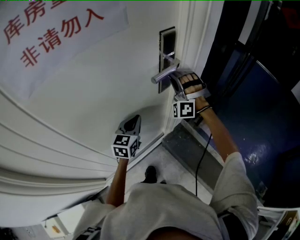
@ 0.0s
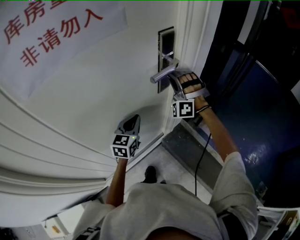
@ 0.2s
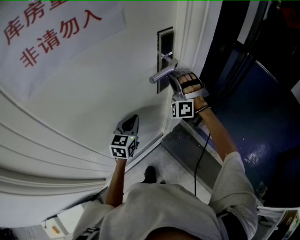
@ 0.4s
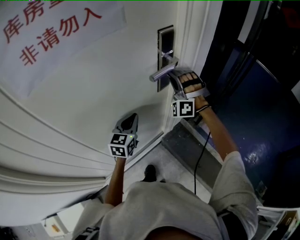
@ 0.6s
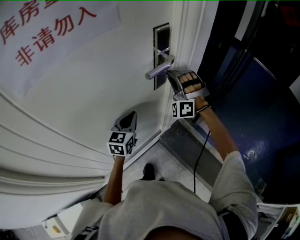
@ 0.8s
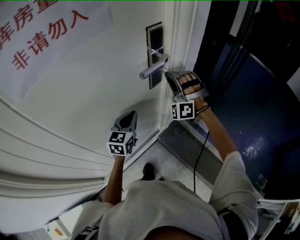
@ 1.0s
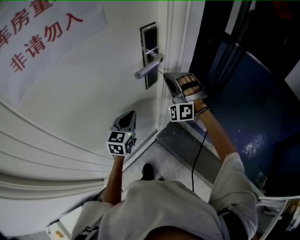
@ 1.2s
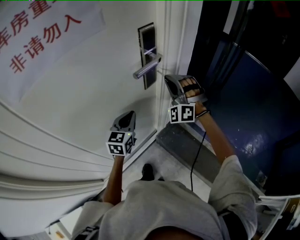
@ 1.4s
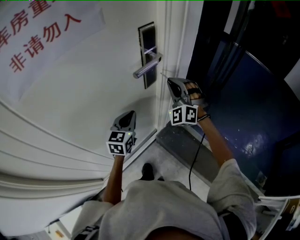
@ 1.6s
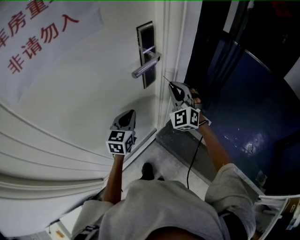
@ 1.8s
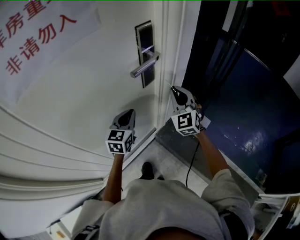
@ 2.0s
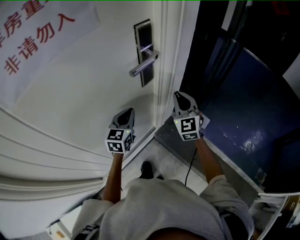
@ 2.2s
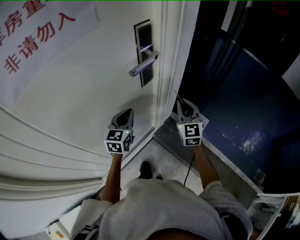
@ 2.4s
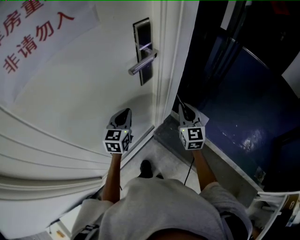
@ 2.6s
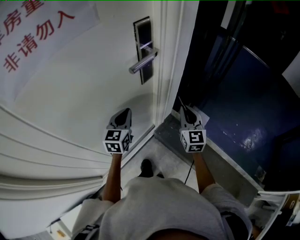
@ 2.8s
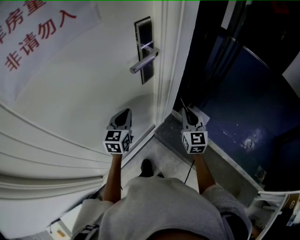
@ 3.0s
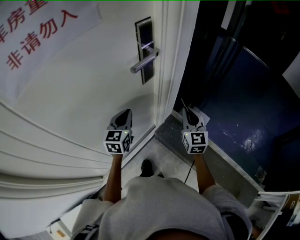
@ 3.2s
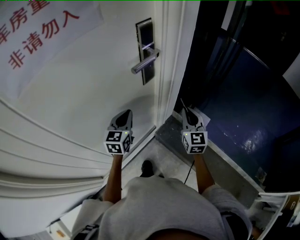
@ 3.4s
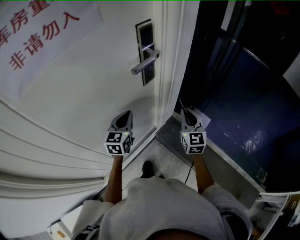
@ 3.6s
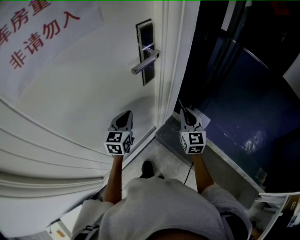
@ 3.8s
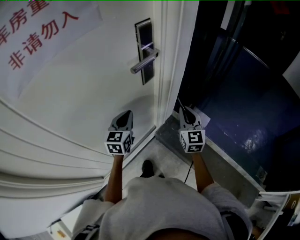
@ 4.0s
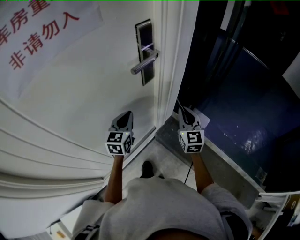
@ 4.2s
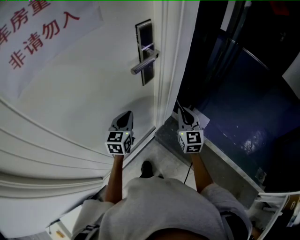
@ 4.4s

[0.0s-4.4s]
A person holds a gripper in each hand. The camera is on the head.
0.0s to 1.4s: The right gripper is displaced to the right by about 5 cm.
1.4s to 3.0s: The right gripper travels to the right, backward and downward by roughly 20 cm, and twists approximately 70 degrees clockwise, seen from behind.
3.0s to 4.4s: The grippers stay close to where they were, moving slightly.

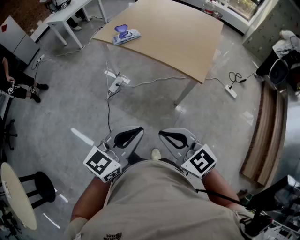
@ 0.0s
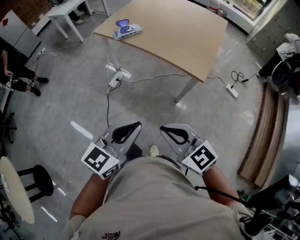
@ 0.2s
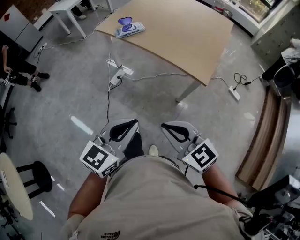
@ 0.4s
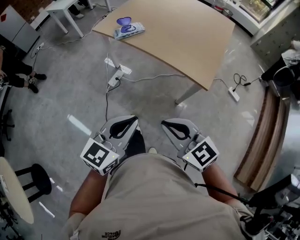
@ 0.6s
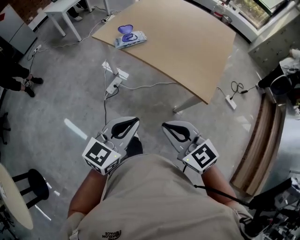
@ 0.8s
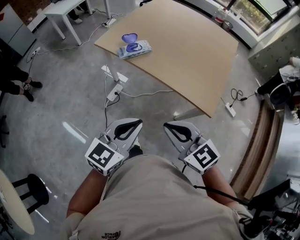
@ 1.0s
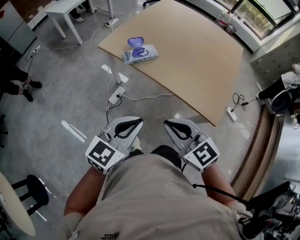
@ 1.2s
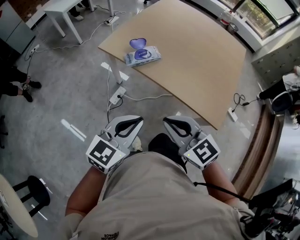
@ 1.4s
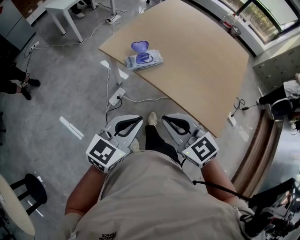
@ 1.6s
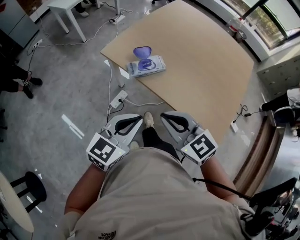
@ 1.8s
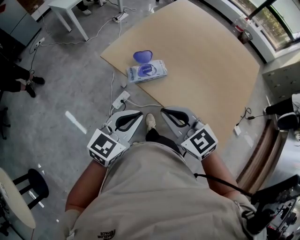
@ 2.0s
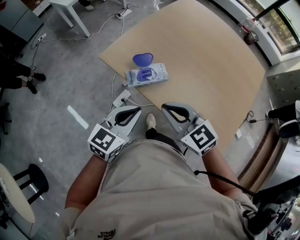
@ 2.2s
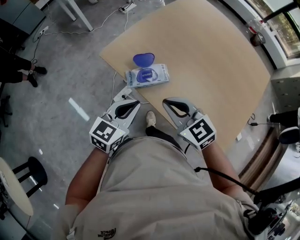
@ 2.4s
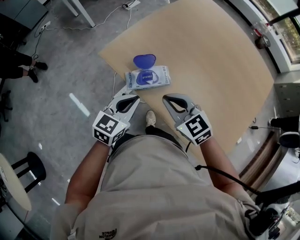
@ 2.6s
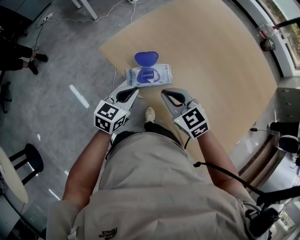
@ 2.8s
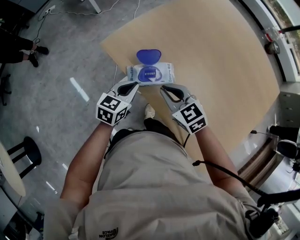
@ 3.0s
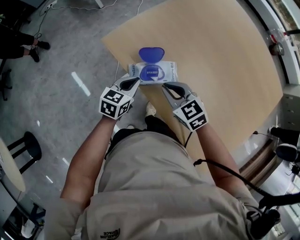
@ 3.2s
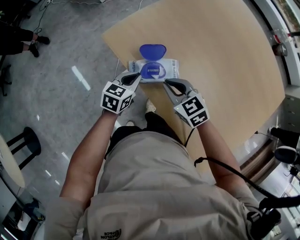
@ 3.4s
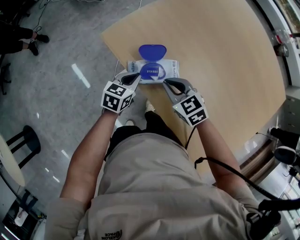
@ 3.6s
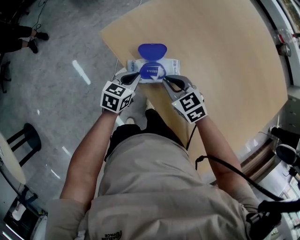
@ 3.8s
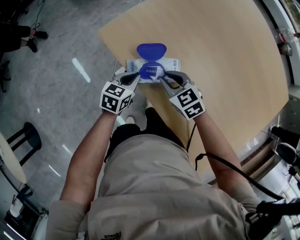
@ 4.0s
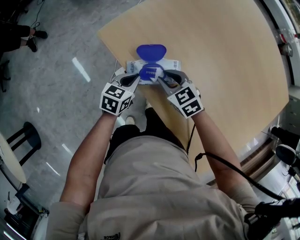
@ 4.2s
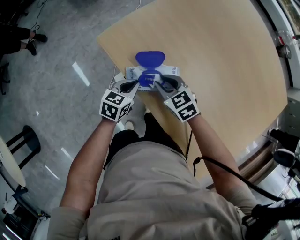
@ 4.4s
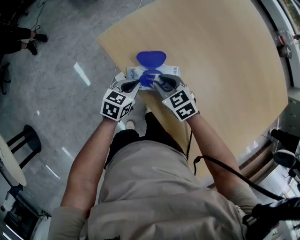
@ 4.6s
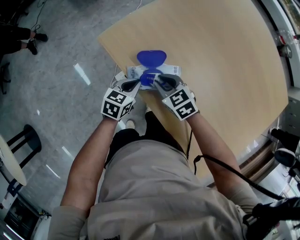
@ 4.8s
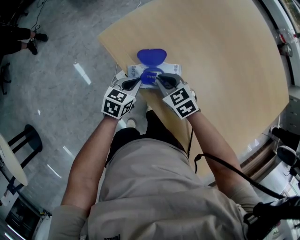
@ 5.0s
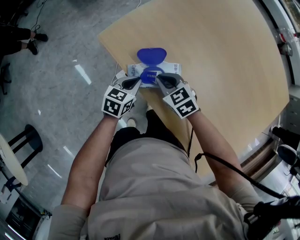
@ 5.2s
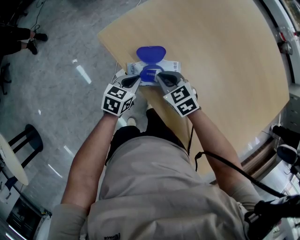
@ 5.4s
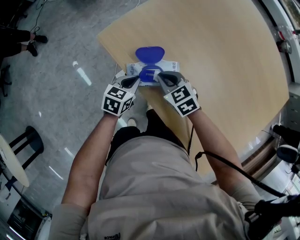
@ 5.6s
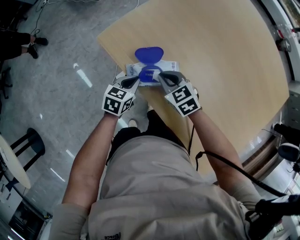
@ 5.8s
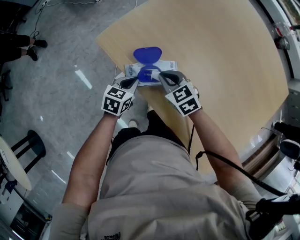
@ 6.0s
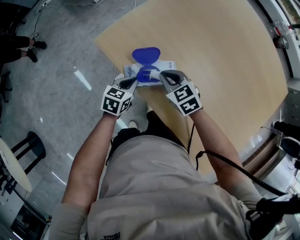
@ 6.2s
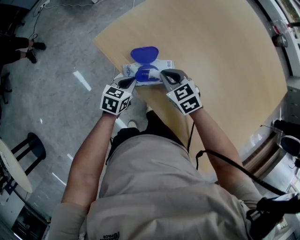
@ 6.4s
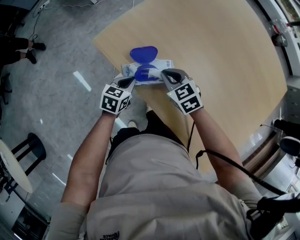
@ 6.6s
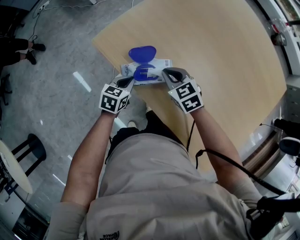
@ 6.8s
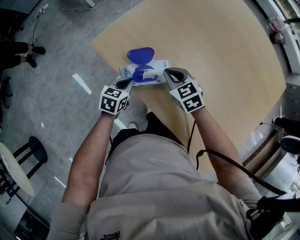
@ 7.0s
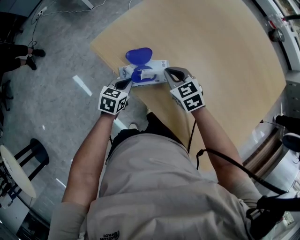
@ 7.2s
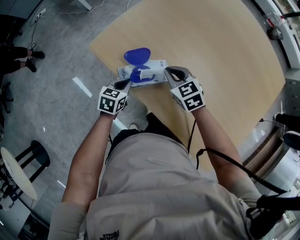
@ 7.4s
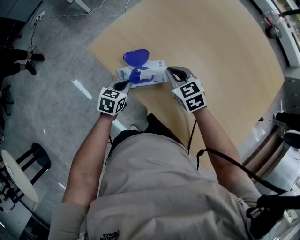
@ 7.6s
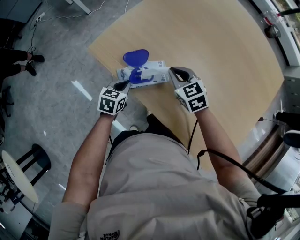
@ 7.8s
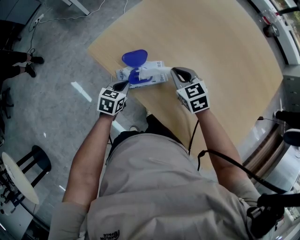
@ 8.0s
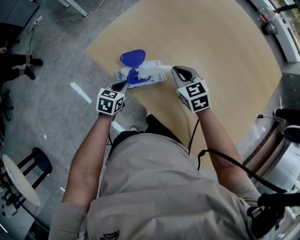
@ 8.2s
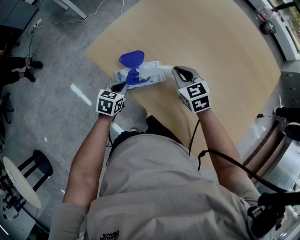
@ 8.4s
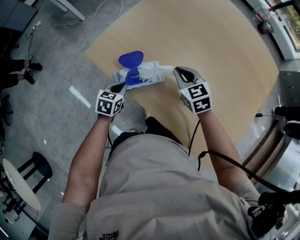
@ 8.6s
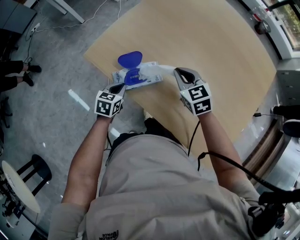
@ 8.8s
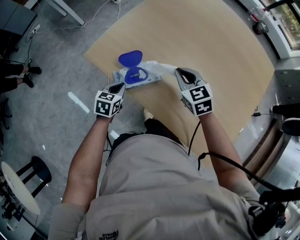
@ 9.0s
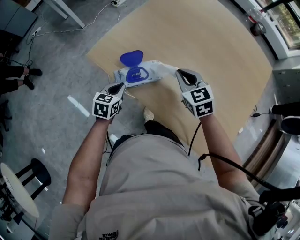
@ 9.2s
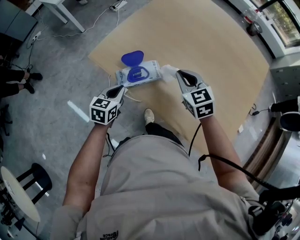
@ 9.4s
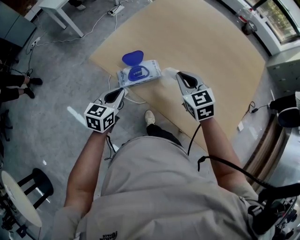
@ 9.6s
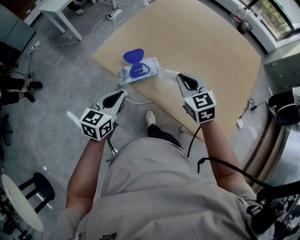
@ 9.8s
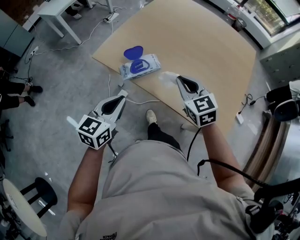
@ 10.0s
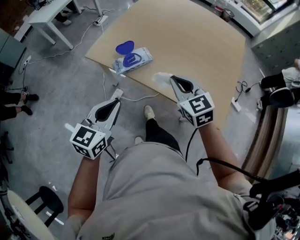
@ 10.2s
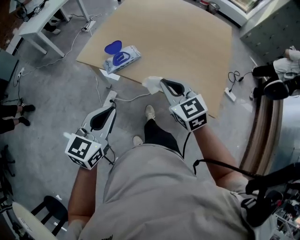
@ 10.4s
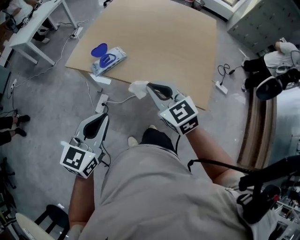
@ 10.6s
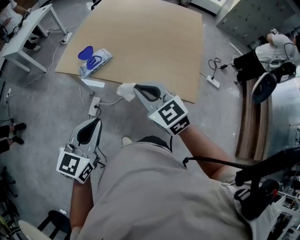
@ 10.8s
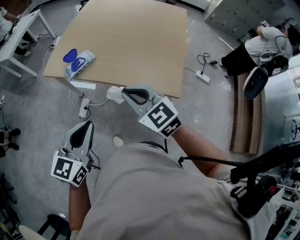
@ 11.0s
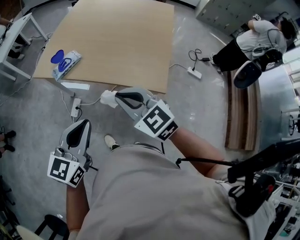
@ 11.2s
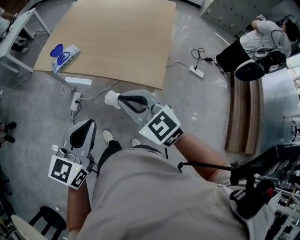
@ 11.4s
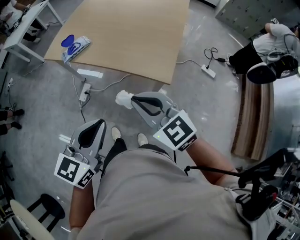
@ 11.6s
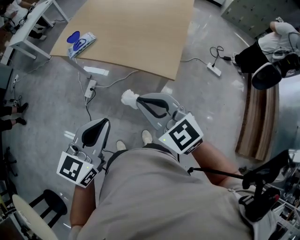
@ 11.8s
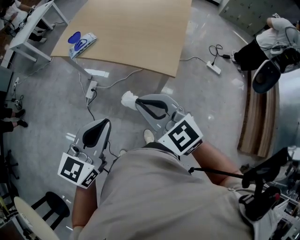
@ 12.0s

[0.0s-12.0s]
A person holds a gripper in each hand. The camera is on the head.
0.0s to 1.6s: Both grippers are carried forward, about 50 cm.
1.6s to 3.0s: Both grippers move forward and downward, approximately 40 cm. The left gripper swivels approximately 30 degrees.
3.0s to 4.4s: The right gripper is displaced downward and forward by approximately 15 cm; the left gripper is displaced downward by roughly 10 cm.
4.4s to 6.0s: The right gripper closes up.
6.0s to 7.6s: The right gripper moves to the right, about 10 cm.
7.6s to 9.0s: The right gripper goes about 10 cm upward and to the right.
9.0s to 10.4s: The right gripper is displaced backward and upward by roughly 35 cm; the left gripper is displaced upward and backward by roughly 40 cm, and tilts its fingers some 30 degrees upward.
10.4s to 12.0s: Both grippers travel together backward and to the right, about 40 cm.

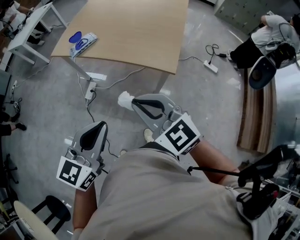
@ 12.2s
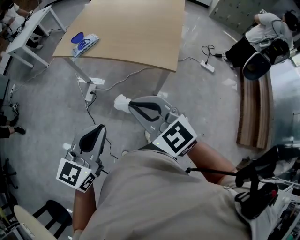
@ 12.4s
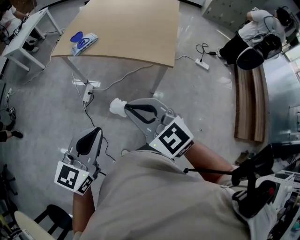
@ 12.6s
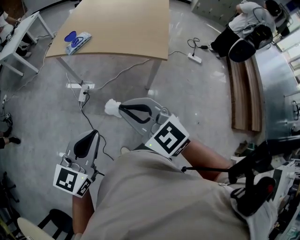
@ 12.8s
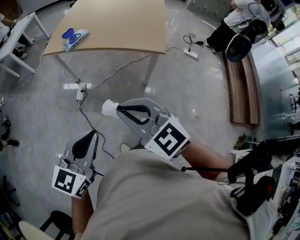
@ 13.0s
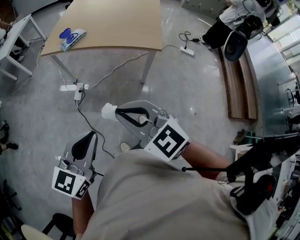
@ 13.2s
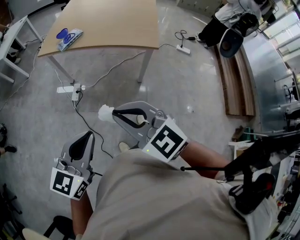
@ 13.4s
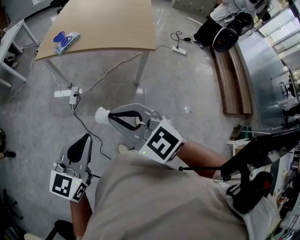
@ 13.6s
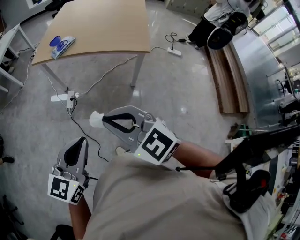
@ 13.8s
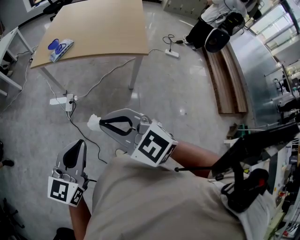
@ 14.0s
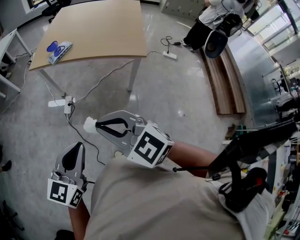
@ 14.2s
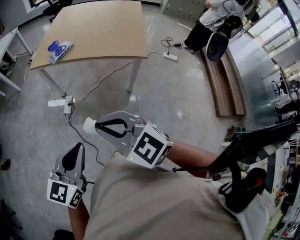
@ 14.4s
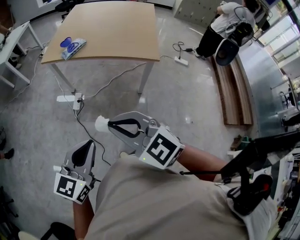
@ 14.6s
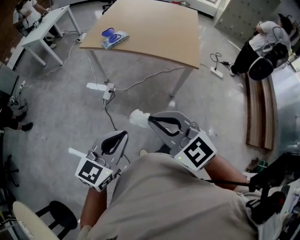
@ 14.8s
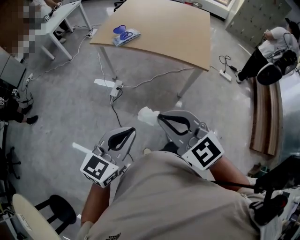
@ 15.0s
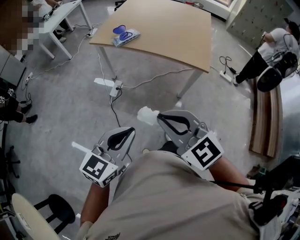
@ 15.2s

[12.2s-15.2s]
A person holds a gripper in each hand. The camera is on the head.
12.2s to 13.8s: Both grippers move to the left and backward, some 30 cm.
13.8s to 15.2s: The grippers stay close to where they were, moving slightly.

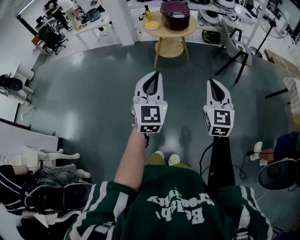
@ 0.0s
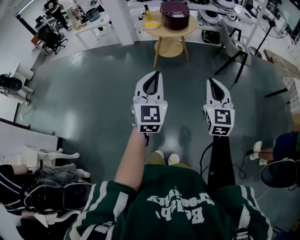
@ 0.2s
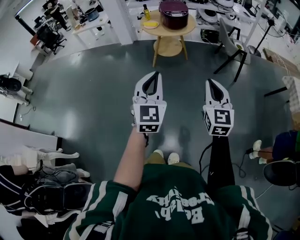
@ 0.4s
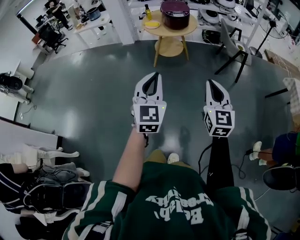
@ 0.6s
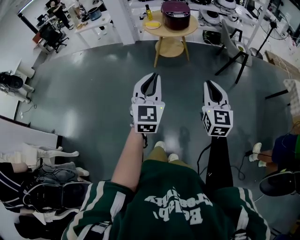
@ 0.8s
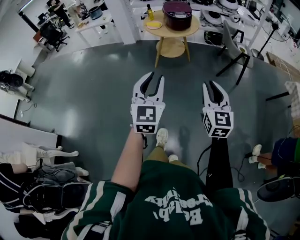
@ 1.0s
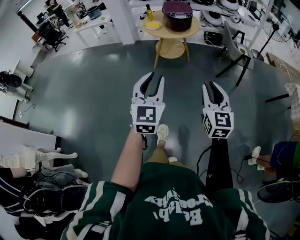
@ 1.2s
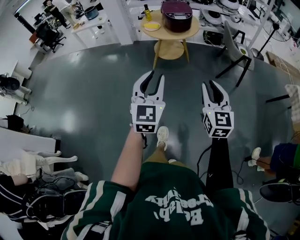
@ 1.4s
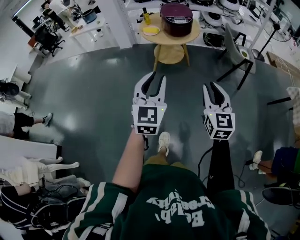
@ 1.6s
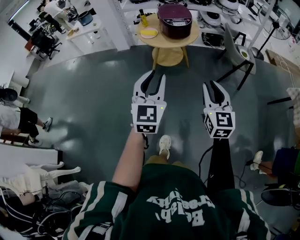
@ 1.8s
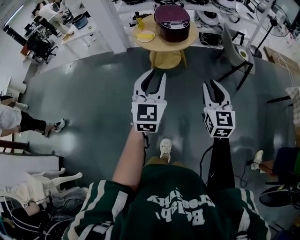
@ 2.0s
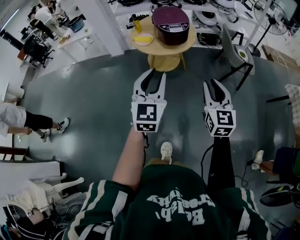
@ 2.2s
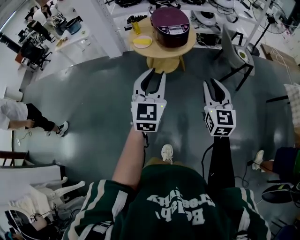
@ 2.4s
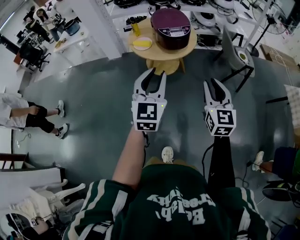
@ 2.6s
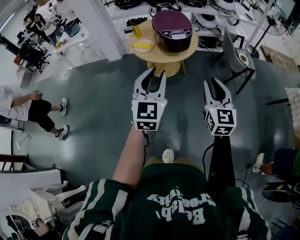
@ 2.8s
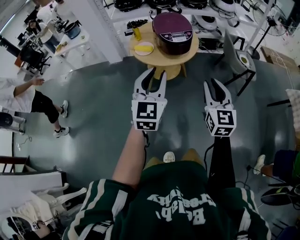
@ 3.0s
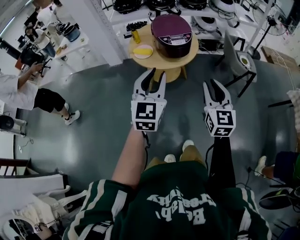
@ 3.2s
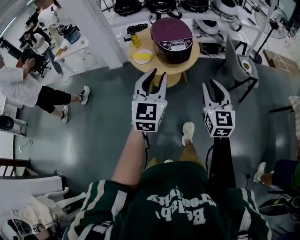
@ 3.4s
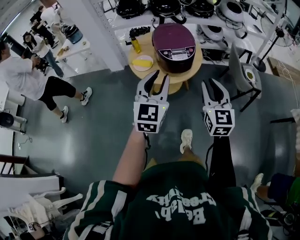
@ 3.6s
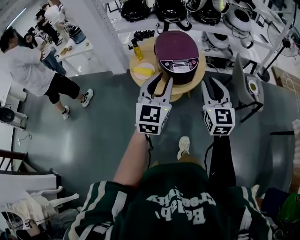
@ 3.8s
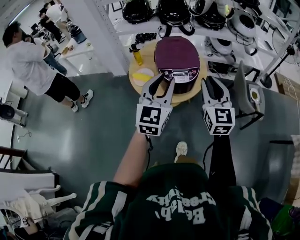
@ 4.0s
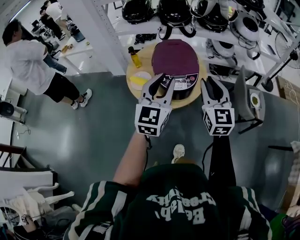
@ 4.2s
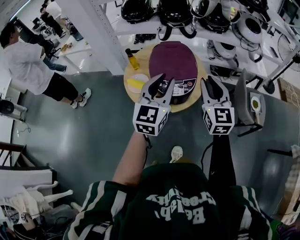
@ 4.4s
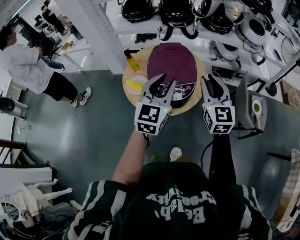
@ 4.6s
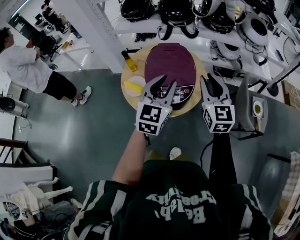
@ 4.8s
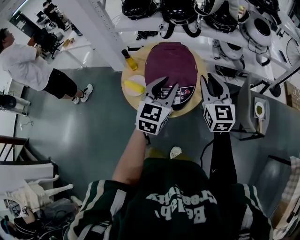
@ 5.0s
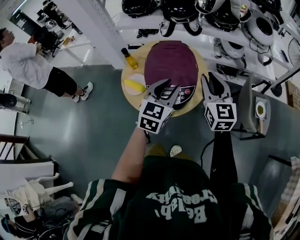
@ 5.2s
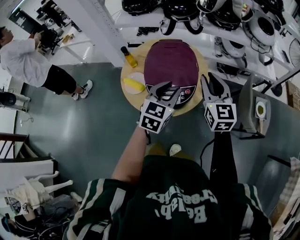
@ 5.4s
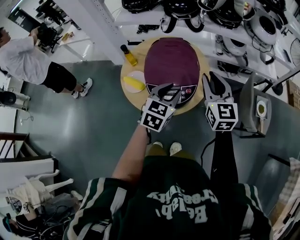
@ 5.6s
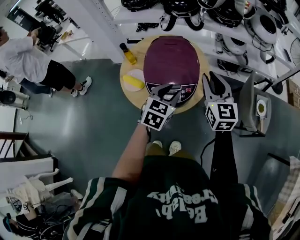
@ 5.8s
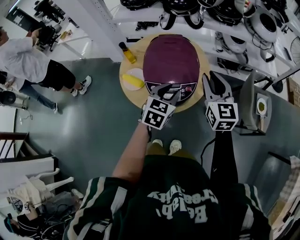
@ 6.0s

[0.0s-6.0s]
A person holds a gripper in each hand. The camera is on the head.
0.0s to 1.6s: Both grippers move forward, some 15 cm. The right gripper opens its fingers, while the left gripper opens.
1.6s to 3.0s: Both grippers travel together forward, approximately 25 cm.
3.0s to 4.4s: Both grippers move forward, approximately 35 cm.
4.4s to 6.0s: The right gripper heads forward and downward, covering approximately 10 cm. The left gripper moves downward and forward, some 20 cm, and tilts its fingers about 30 degrees downward.
